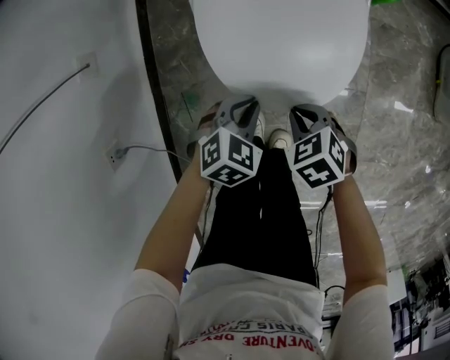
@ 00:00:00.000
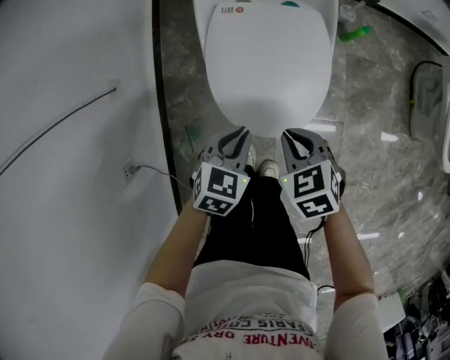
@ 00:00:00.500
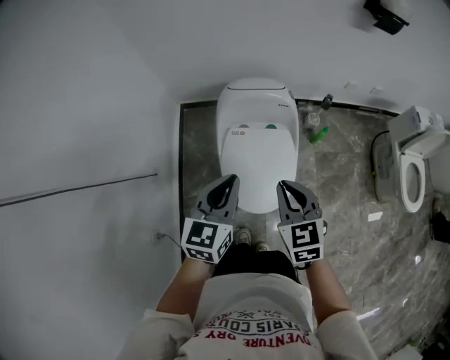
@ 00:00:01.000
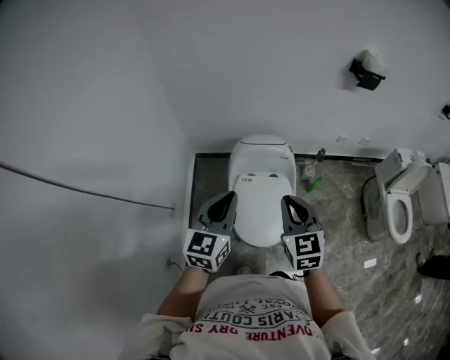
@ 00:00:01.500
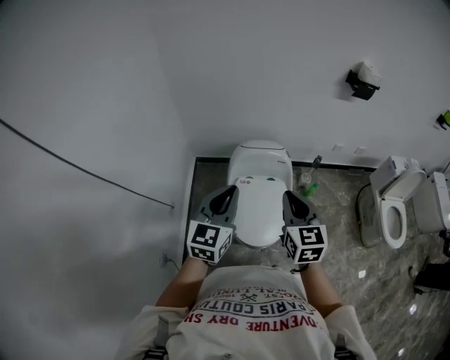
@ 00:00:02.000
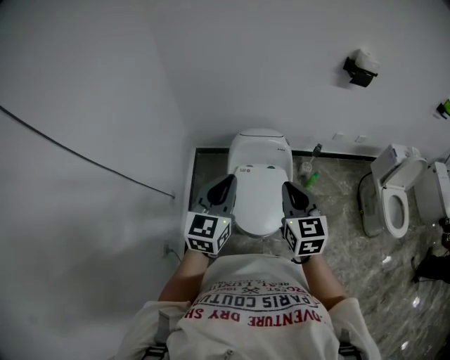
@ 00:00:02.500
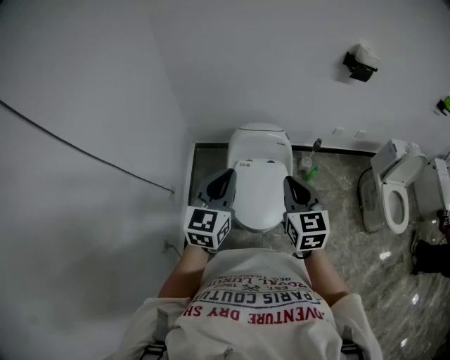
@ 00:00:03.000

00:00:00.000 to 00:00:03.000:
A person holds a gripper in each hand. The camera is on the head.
00:00:00.000 to 00:00:01.500: The two grippers go some 60 cm upward. The right gripper tilts its fingers some 50 degrees upward. Meanwhile the left gripper points its fingers roughly 50 degrees further upward.
00:00:01.500 to 00:00:03.000: The right gripper moves about 5 cm. Meanwhile the left gripper shifts by roughly 5 cm.

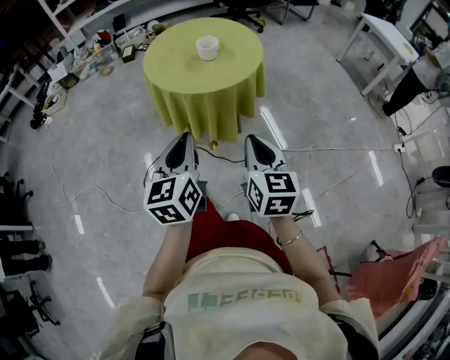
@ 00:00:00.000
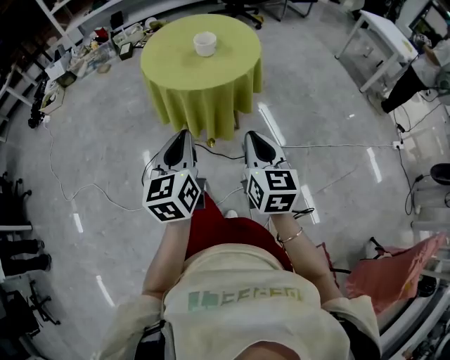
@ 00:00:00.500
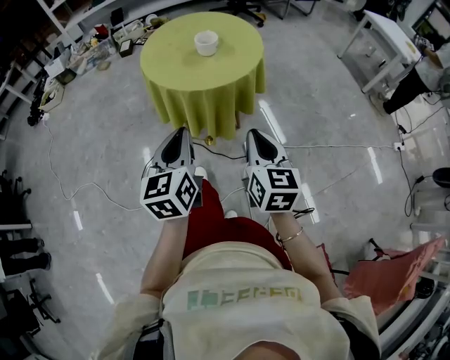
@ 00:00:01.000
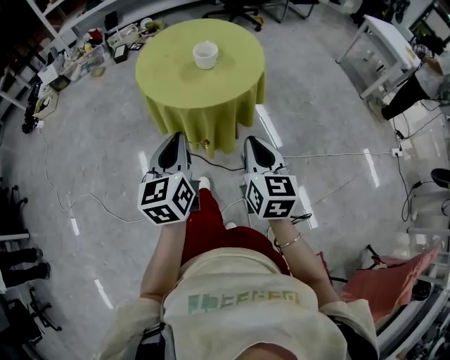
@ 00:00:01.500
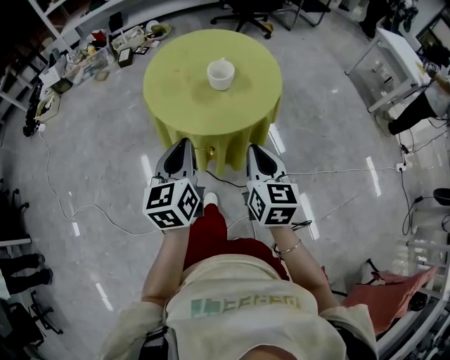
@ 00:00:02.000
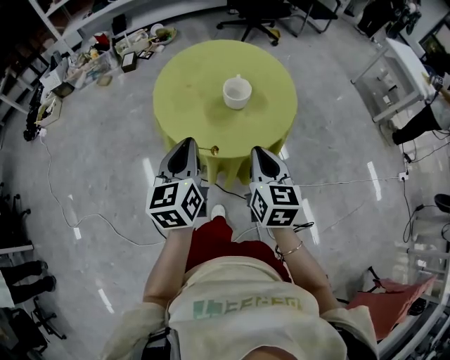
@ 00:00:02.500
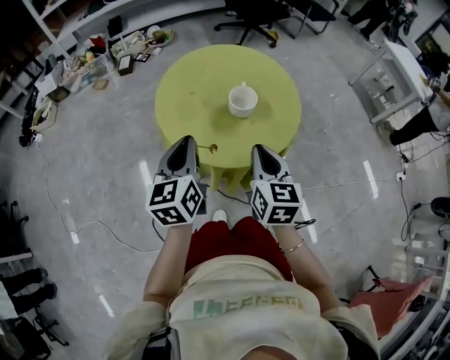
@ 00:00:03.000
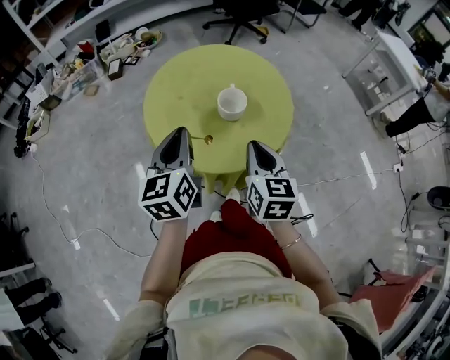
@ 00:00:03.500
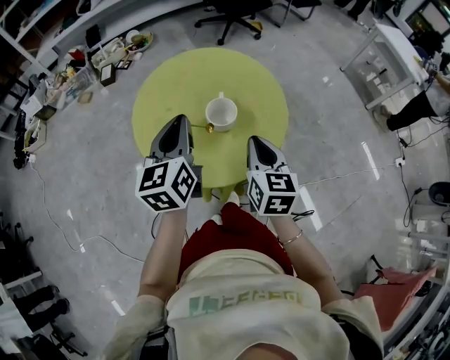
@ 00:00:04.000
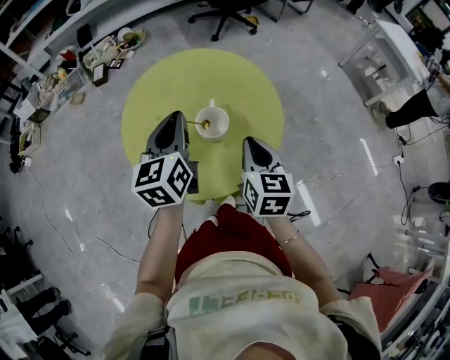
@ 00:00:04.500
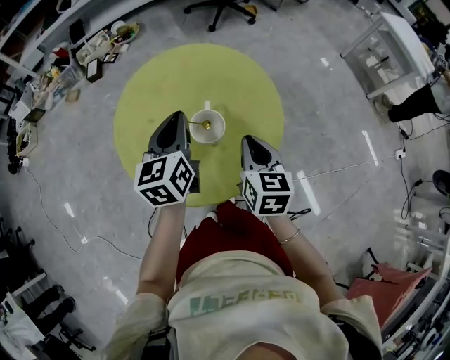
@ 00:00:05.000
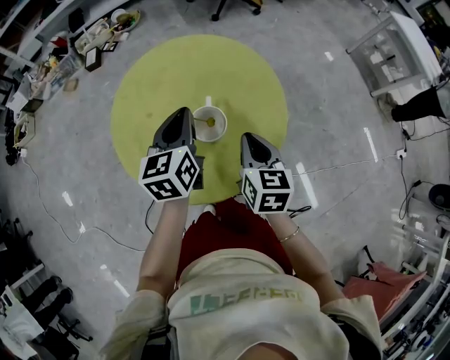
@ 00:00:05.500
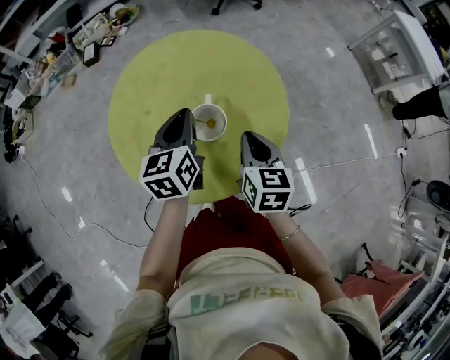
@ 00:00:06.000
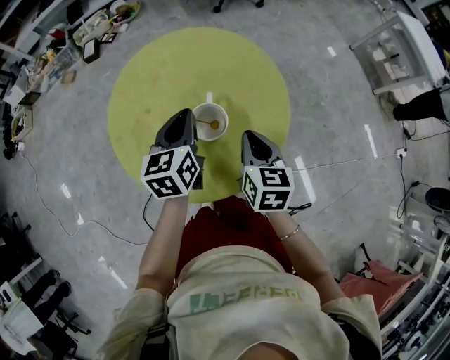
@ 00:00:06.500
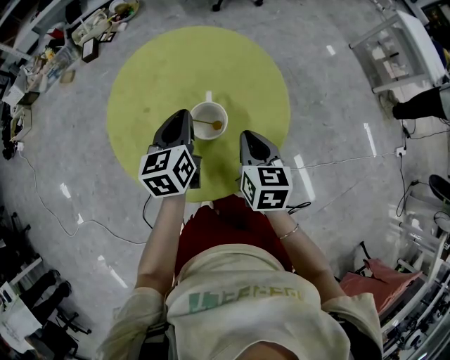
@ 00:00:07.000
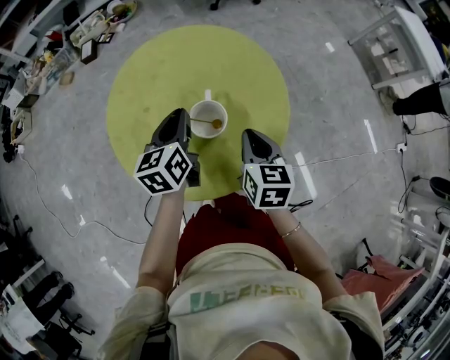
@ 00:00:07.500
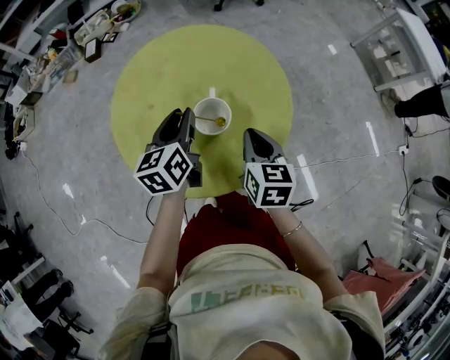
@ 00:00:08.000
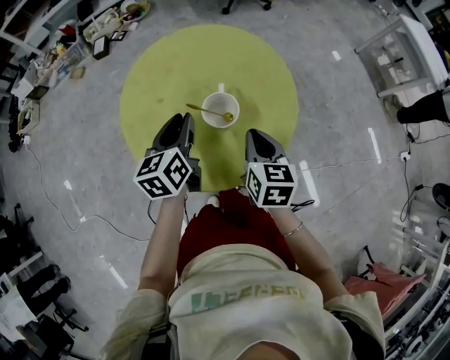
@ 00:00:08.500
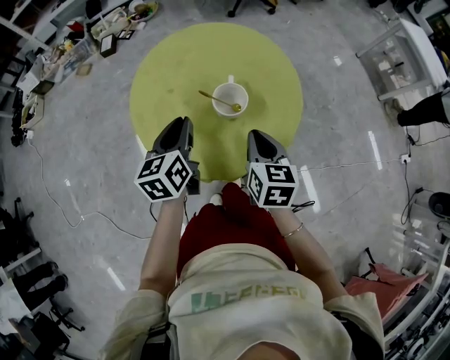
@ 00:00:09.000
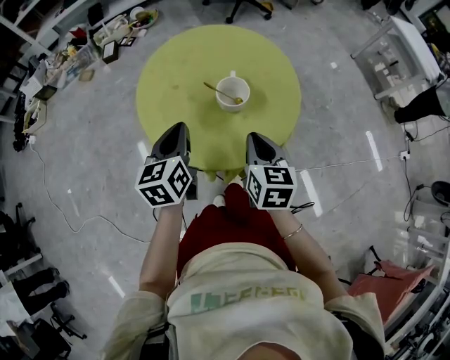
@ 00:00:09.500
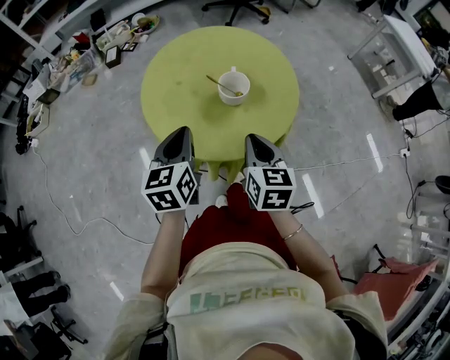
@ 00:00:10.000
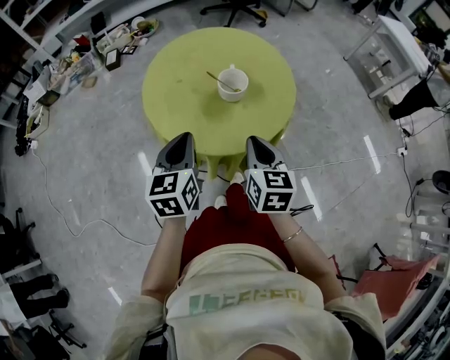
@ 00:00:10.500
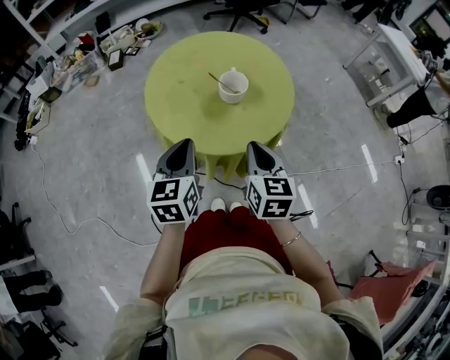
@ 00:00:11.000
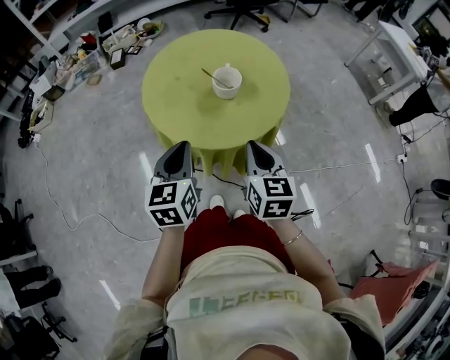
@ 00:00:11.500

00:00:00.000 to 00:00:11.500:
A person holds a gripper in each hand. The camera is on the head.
00:00:00.000 to 00:00:02.000: Both grippers travel together forward, some 20 cm.
00:00:02.000 to 00:00:04.000: Both grippers move forward, some 25 cm.
00:00:04.000 to 00:00:06.000: The left gripper goes approximately 20 cm forward, downward and to the right, while the right gripper goes some 15 cm forward and downward.
00:00:06.000 to 00:00:07.500: The grippers make only small movements.
00:00:07.500 to 00:00:09.500: The grippers both shift backward and to the left by some 15 cm.
00:00:09.500 to 00:00:11.500: The grippers both shift backward by some 15 cm.

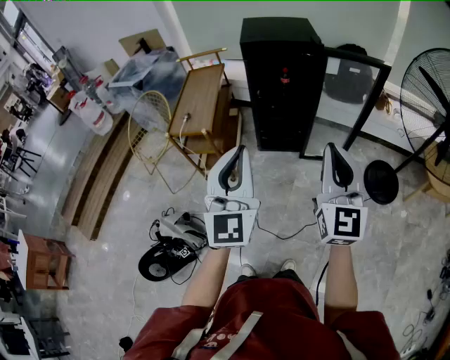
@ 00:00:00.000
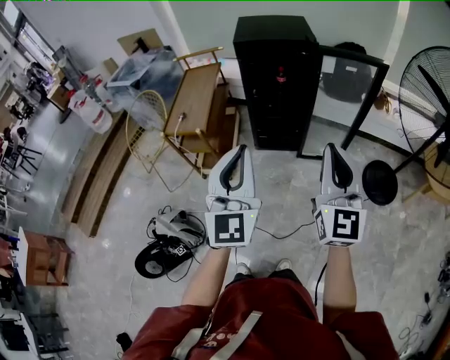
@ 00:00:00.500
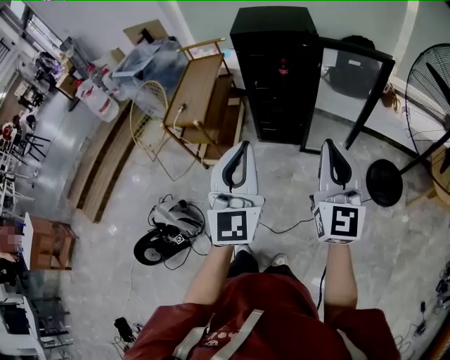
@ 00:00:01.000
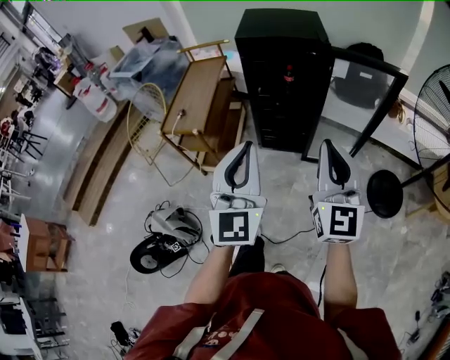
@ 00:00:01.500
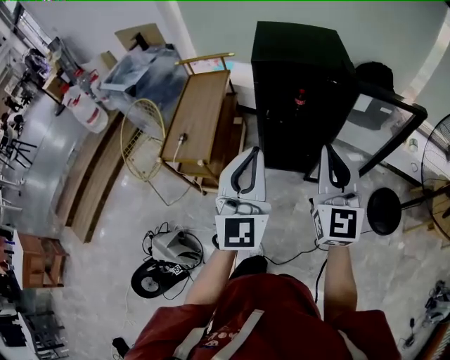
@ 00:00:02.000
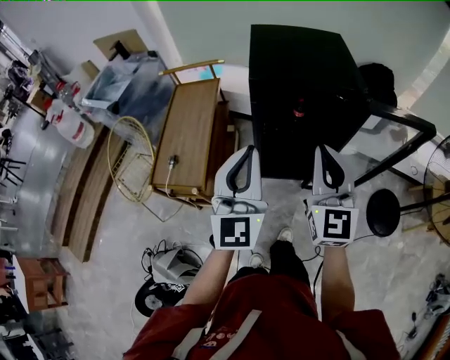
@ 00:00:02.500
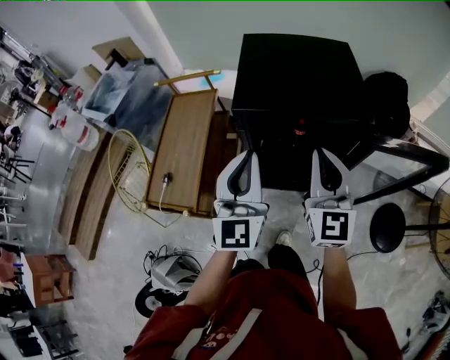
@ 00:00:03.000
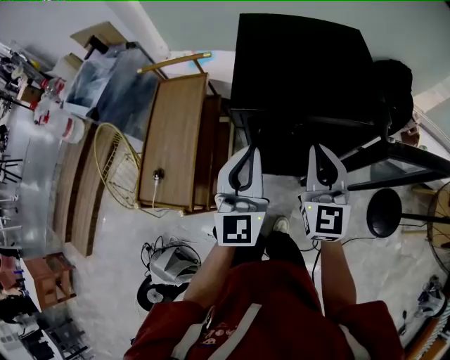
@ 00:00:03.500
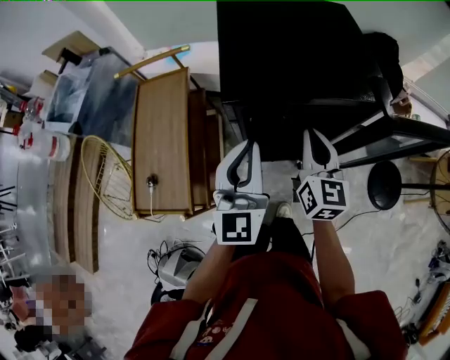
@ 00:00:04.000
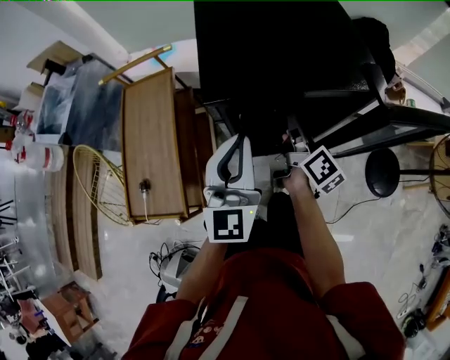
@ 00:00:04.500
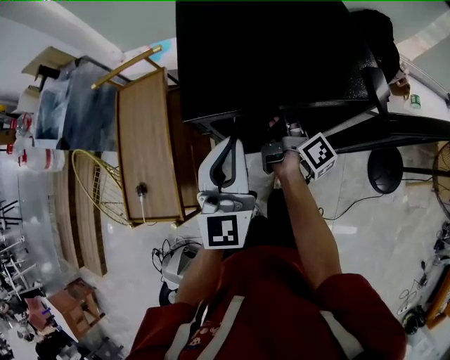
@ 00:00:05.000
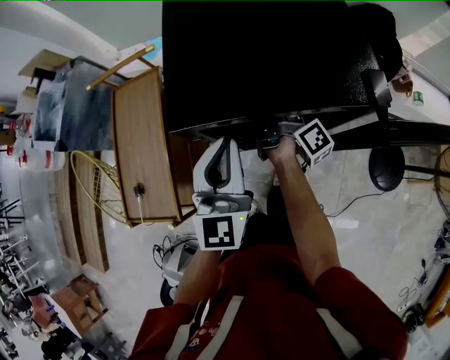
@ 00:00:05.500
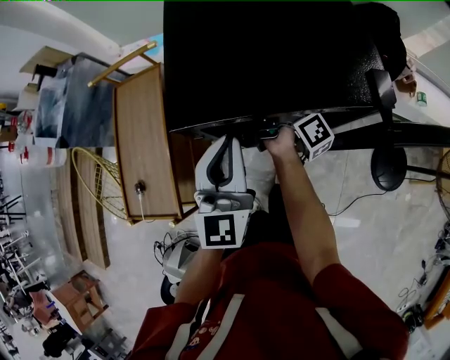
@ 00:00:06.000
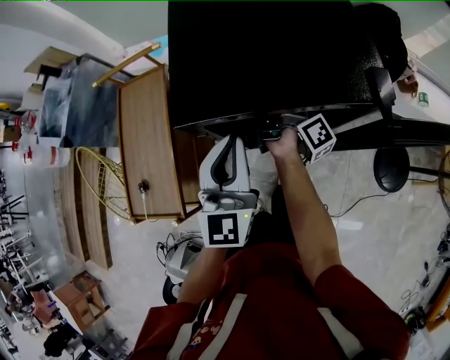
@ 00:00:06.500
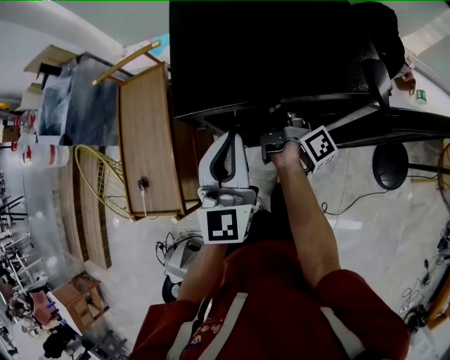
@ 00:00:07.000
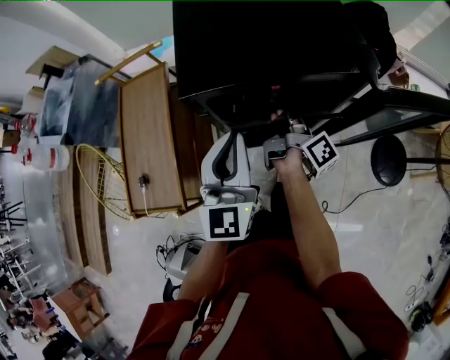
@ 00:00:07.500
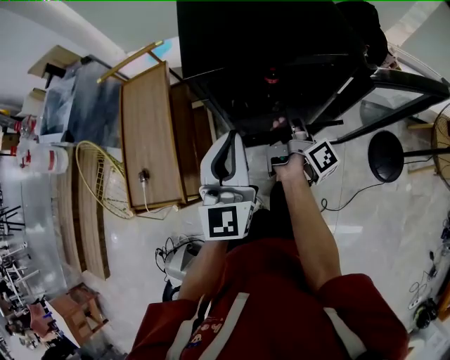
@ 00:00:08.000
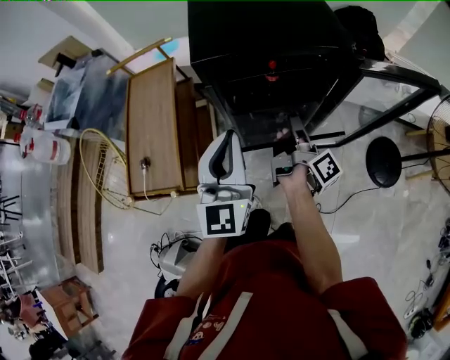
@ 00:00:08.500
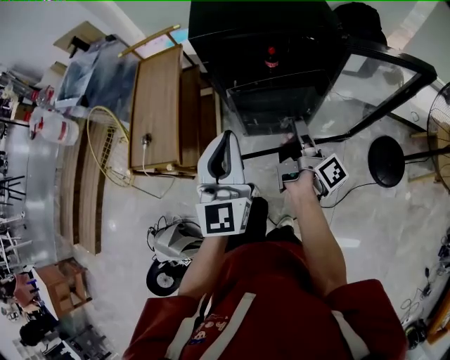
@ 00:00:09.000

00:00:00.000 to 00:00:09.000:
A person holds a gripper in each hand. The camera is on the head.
00:00:00.000 to 00:00:02.000: The two grippers go about 25 cm forward.
00:00:02.000 to 00:00:04.500: Both grippers travel together forward and downward, roughly 40 cm. The right gripper rotates around the line of its fingers by some 70 degrees, clockwise from behind, and opens its fingers.
00:00:04.500 to 00:00:07.000: The right gripper moves forward, some 5 cm, rotates approximately 30 degrees, and closes up.
00:00:07.000 to 00:00:09.000: Both grippers move backward, some 25 cm.

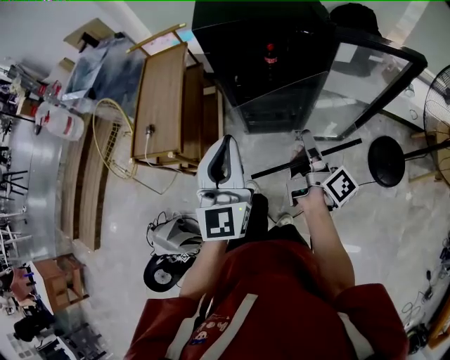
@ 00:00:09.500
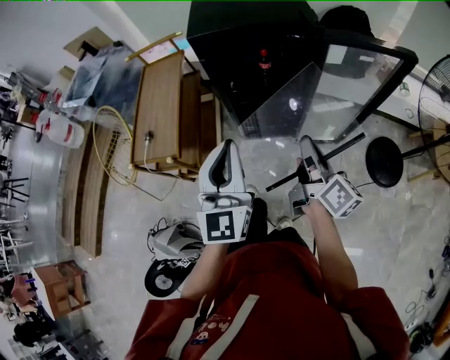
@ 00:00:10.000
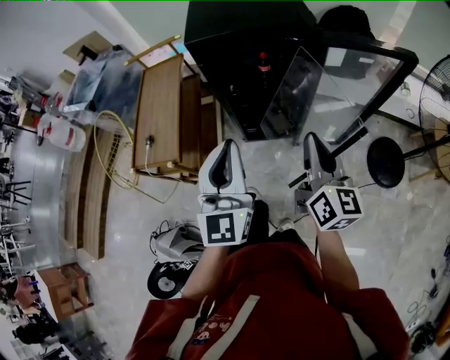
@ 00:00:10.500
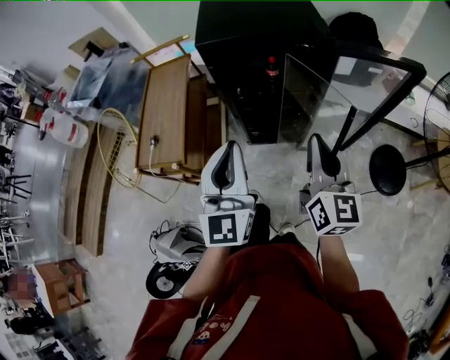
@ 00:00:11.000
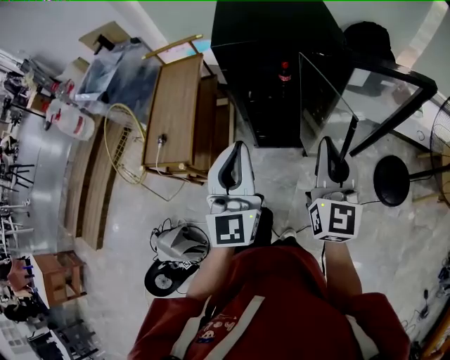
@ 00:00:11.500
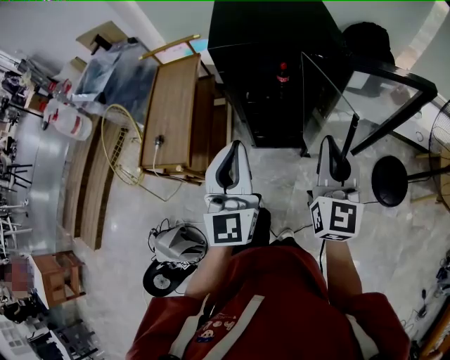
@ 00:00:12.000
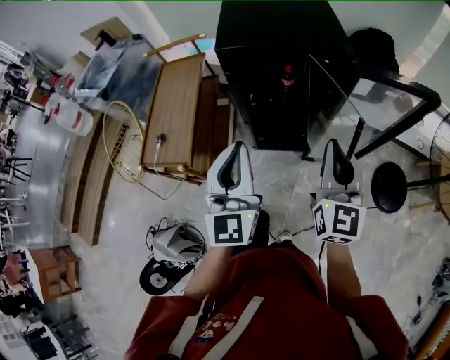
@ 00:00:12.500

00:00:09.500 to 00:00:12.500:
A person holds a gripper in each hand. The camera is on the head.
00:00:09.500 to 00:00:11.000: The right gripper shifts about 10 cm upward, and twists approximately 60 degrees counterclockwise, seen from behind.
00:00:11.000 to 00:00:12.500: There are only small adjustments of the grippers.
